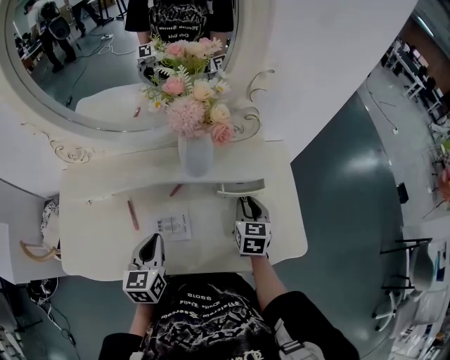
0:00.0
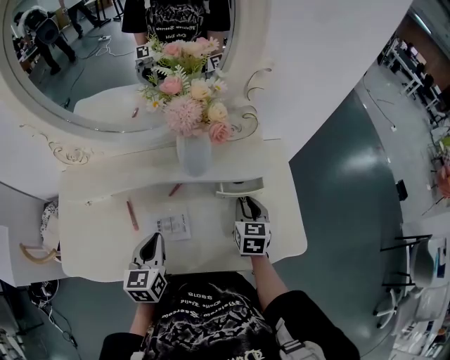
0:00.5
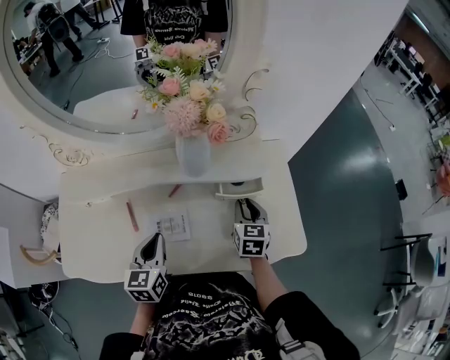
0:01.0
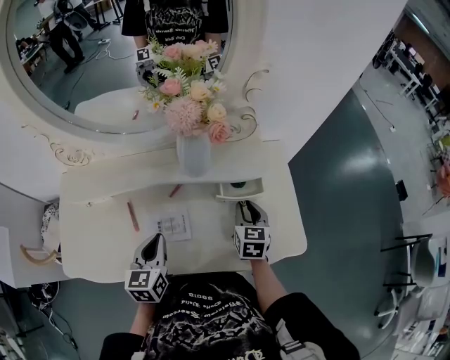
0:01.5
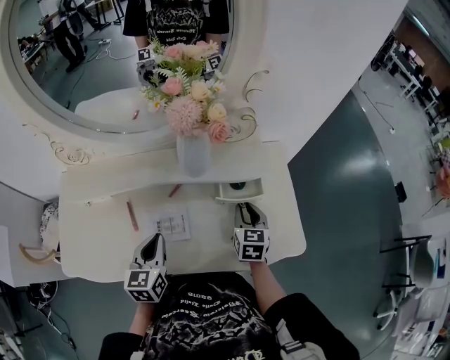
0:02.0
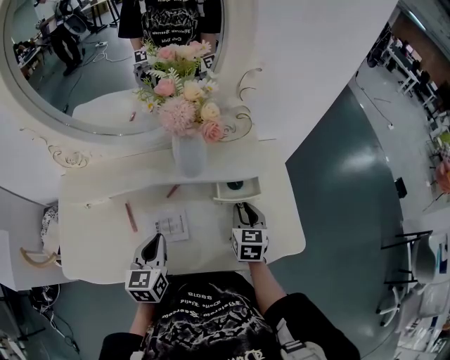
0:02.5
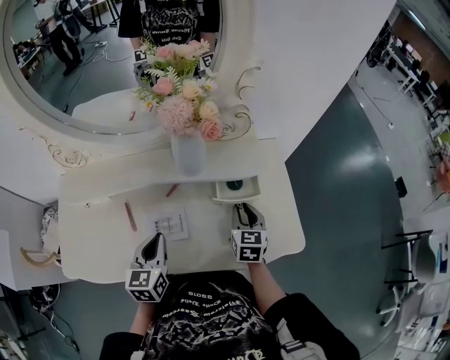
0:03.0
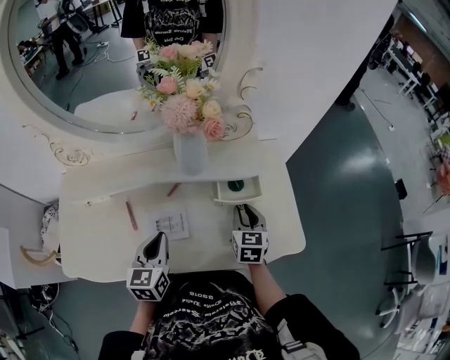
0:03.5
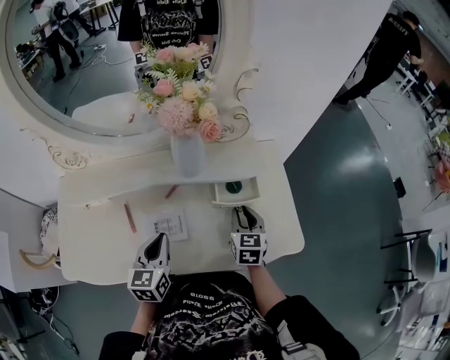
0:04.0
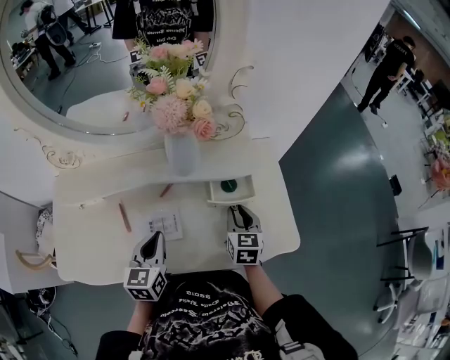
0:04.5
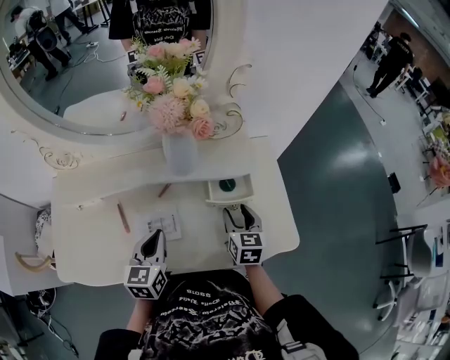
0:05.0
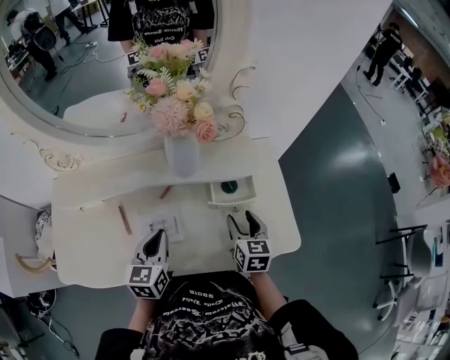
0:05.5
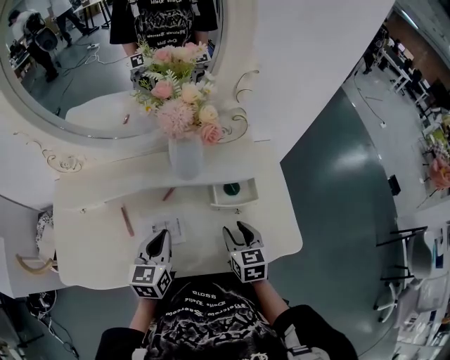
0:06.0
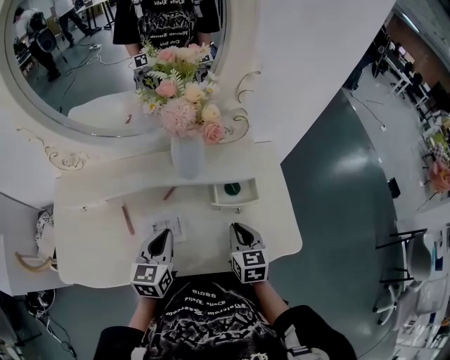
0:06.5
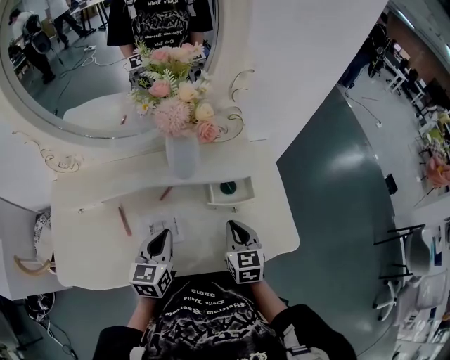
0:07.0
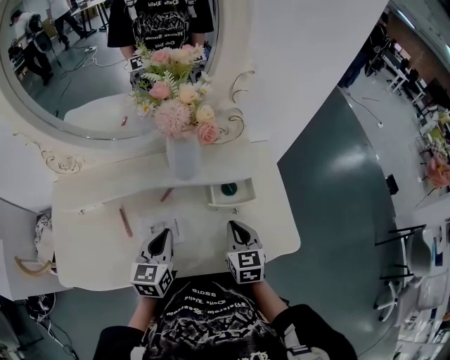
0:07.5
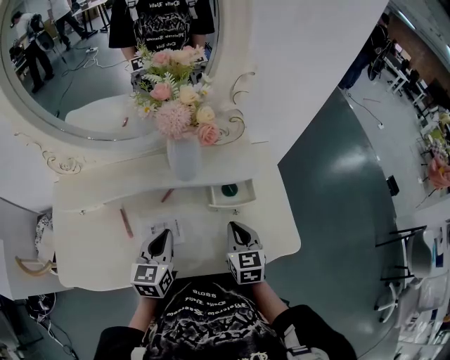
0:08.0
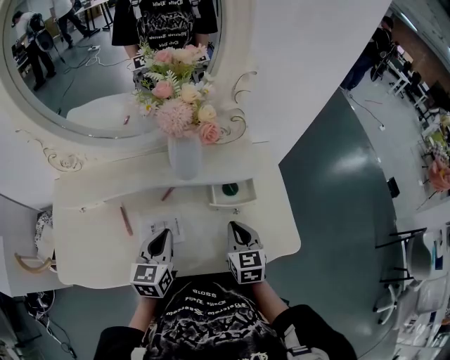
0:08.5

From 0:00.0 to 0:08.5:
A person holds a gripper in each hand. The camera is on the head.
From 0:00.0 to 0:04.0: The grippers make only small movements.
From 0:04.0 to 0:06.5: The right gripper moves backward, some 5 cm, and opens, then closes once more.
From 0:06.5 to 0:08.5: The grippers make only small movements.

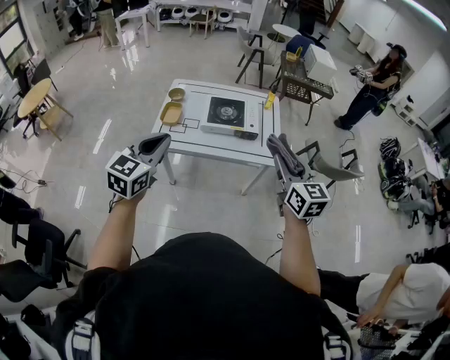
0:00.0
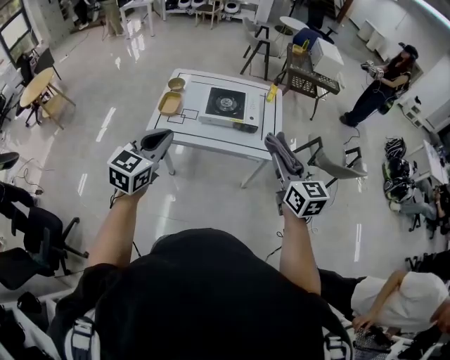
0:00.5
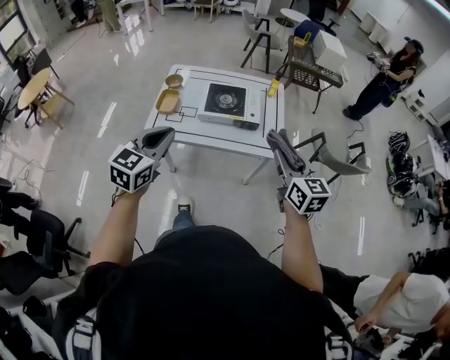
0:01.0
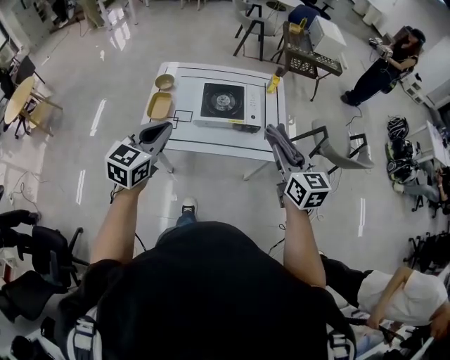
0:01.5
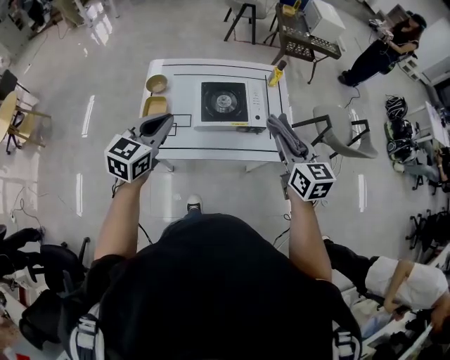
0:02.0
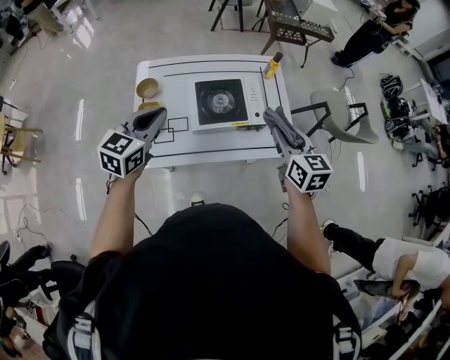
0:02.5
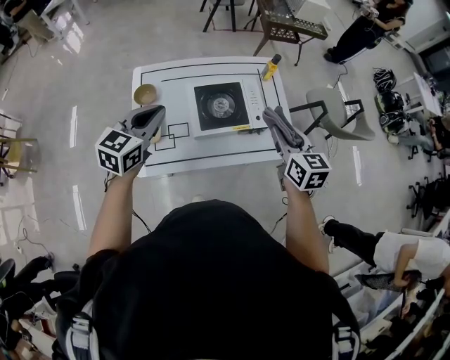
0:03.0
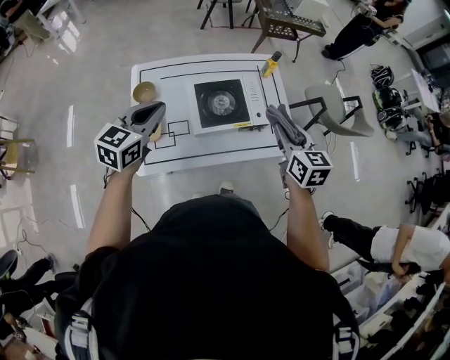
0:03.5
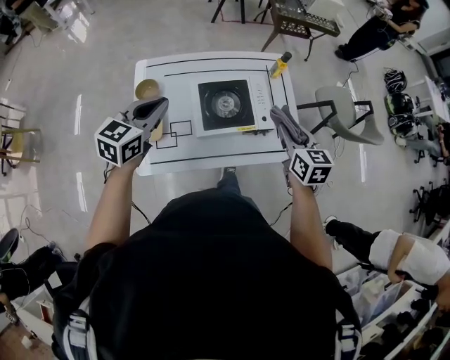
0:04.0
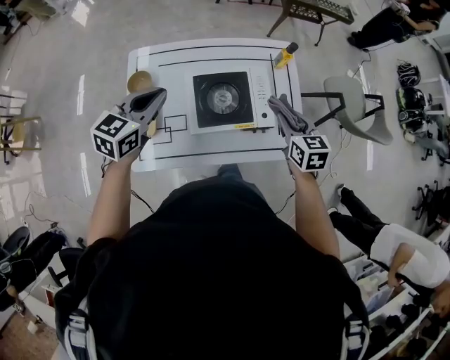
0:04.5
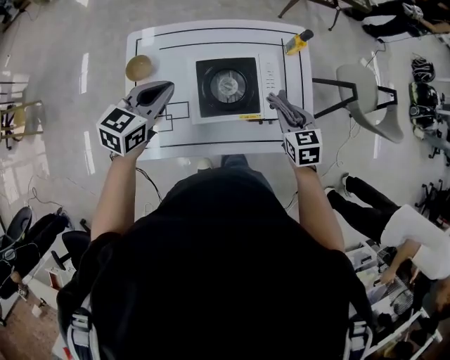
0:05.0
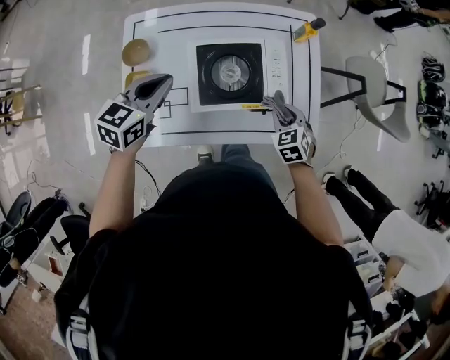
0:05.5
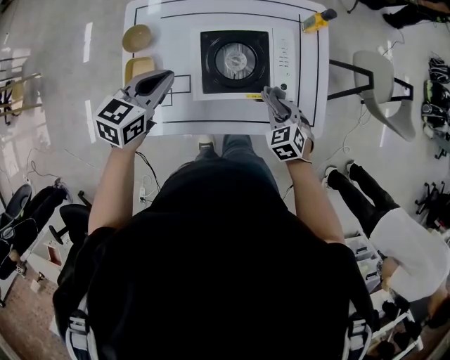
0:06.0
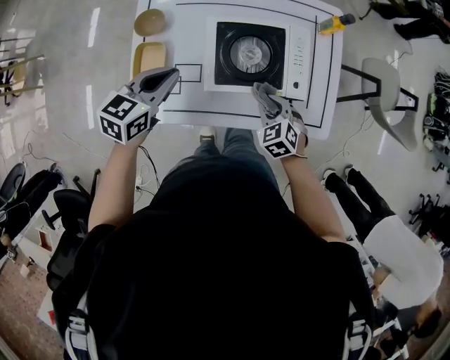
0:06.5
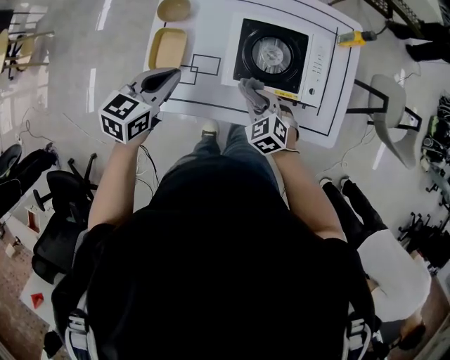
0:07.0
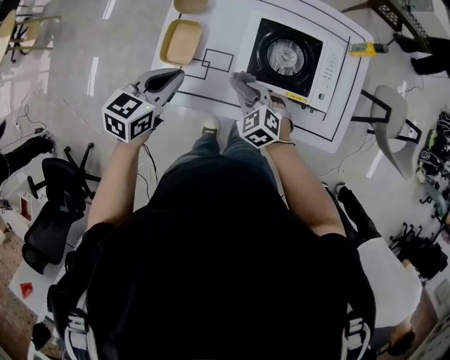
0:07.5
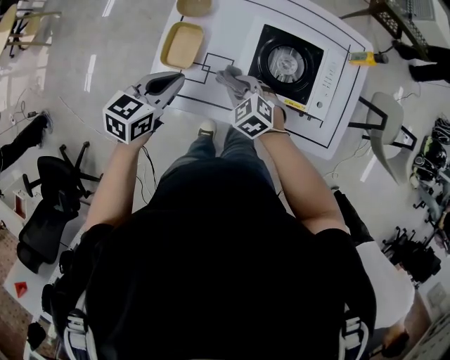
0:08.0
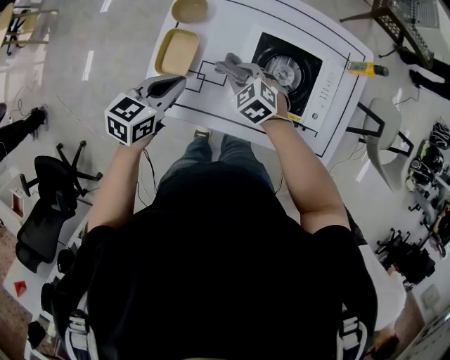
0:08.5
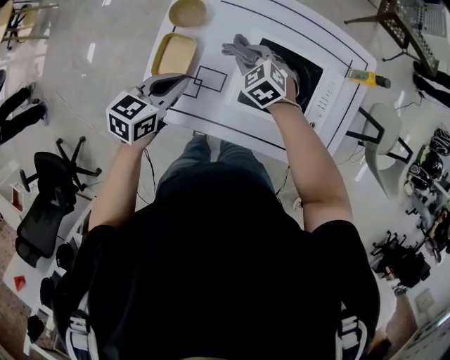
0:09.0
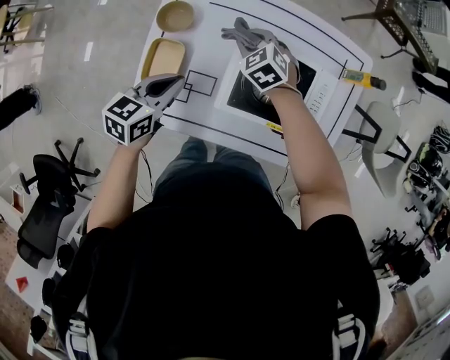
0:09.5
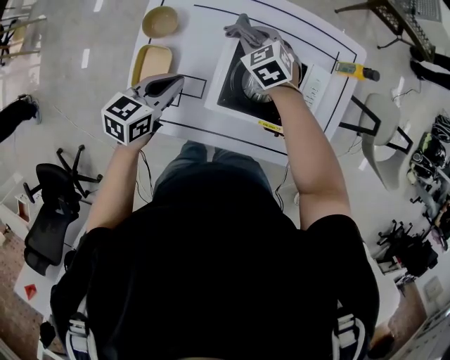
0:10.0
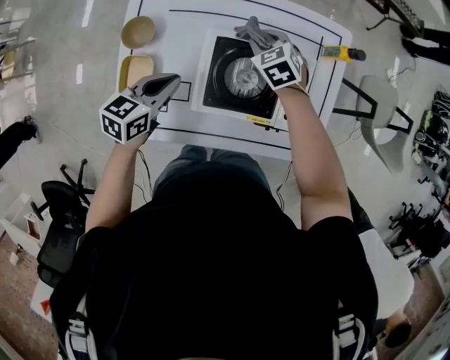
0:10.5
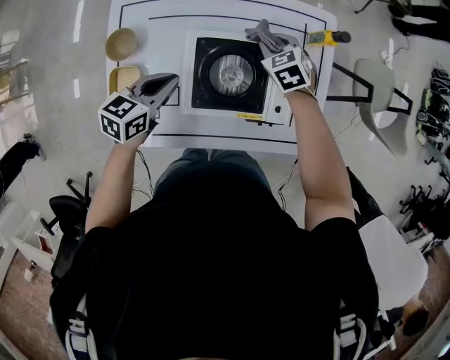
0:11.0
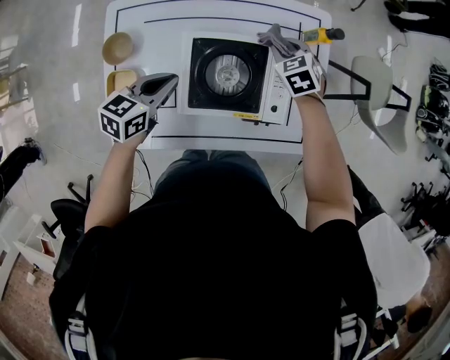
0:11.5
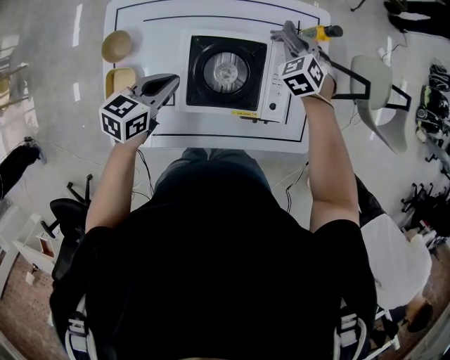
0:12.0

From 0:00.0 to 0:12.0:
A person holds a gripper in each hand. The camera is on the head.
From 0:00.0 to 0:02.0: The grippers both shift forward by about 30 cm.
From 0:02.0 to 0:04.0: The left gripper travels forward and to the left by approximately 20 cm. Meanwhile the right gripper shifts roughly 15 cm forward and downward.
From 0:04.0 to 0:06.0: The left gripper travels downward and forward by about 20 cm, while the right gripper moves downward, about 25 cm, and turns by some 50 degrees.
From 0:06.0 to 0:08.0: The left gripper shifts by some 15 cm. The right gripper changes place by roughly 30 cm, and rotates some 30 degrees.
From 0:08.0 to 0:10.0: The right gripper moves forward, about 25 cm, while the left gripper goes some 15 cm forward and to the right.
From 0:10.0 to 0:12.0: The right gripper ends up about 30 cm from where it was, and swivels approximately 30 degrees; the left gripper ends up about 10 cm from where it was.

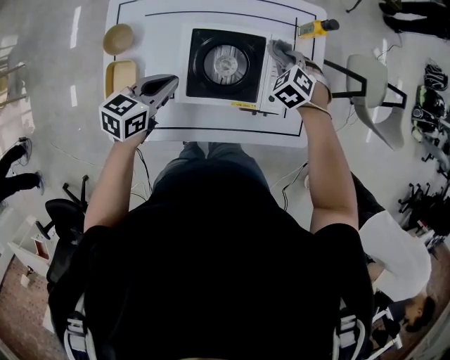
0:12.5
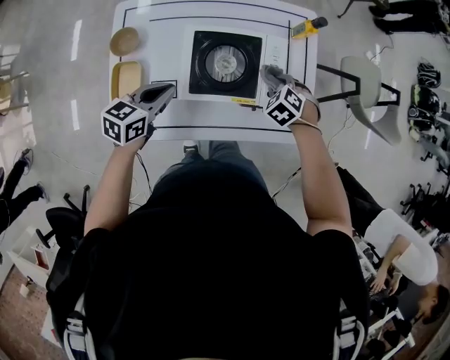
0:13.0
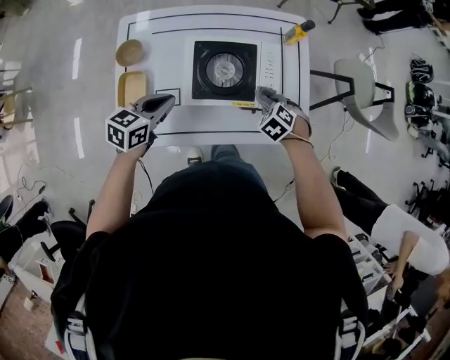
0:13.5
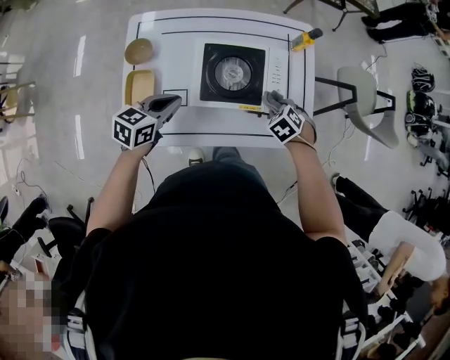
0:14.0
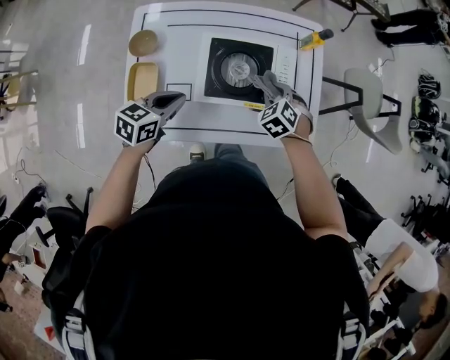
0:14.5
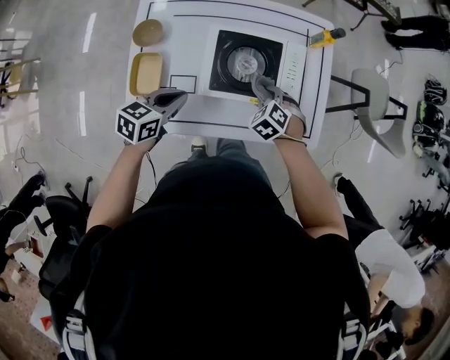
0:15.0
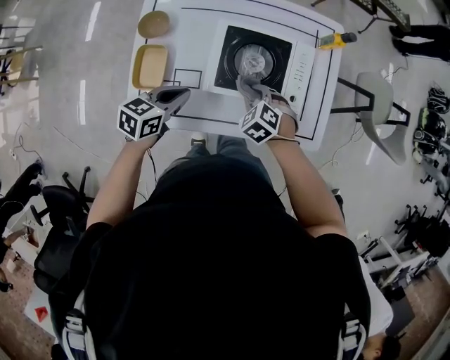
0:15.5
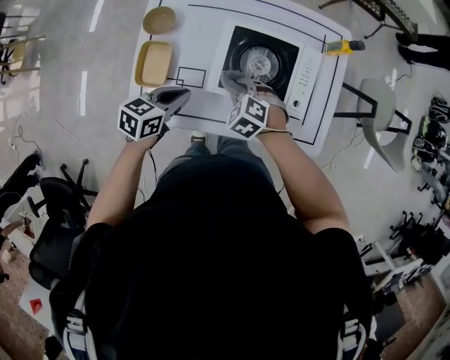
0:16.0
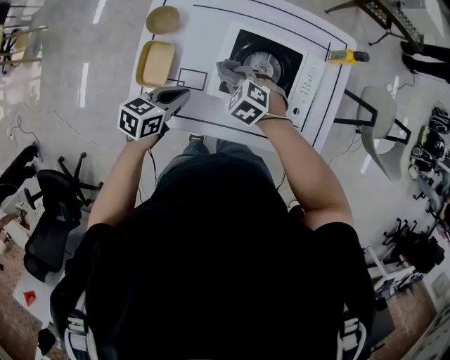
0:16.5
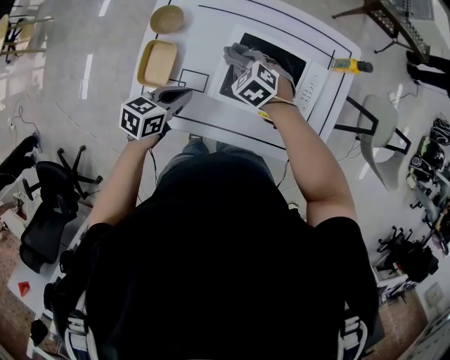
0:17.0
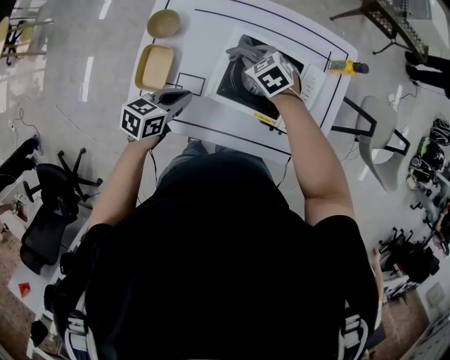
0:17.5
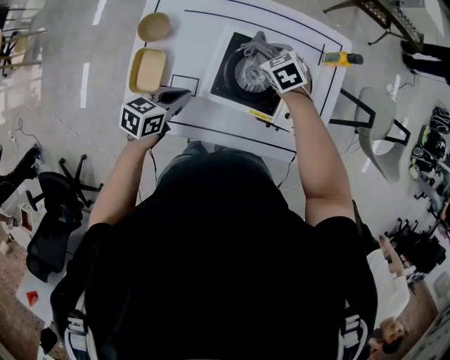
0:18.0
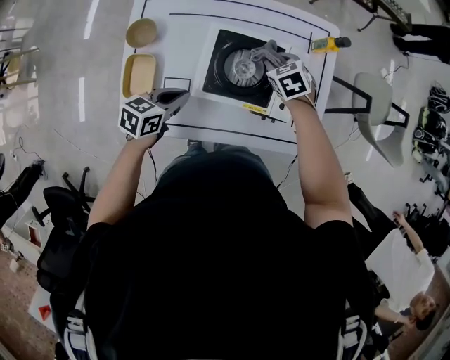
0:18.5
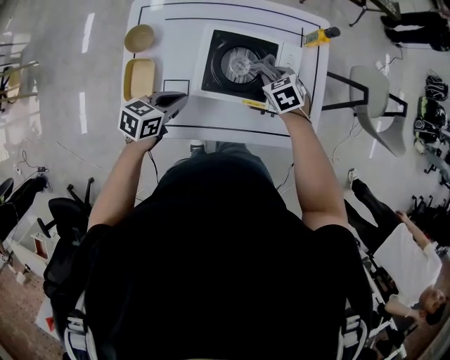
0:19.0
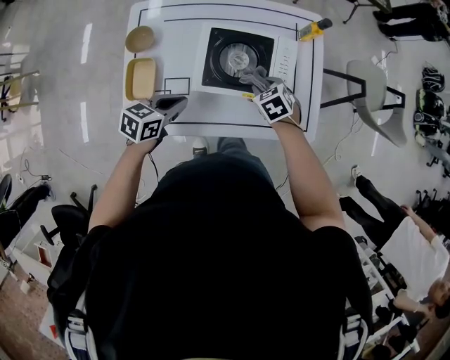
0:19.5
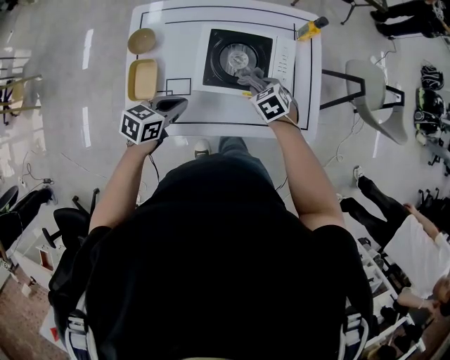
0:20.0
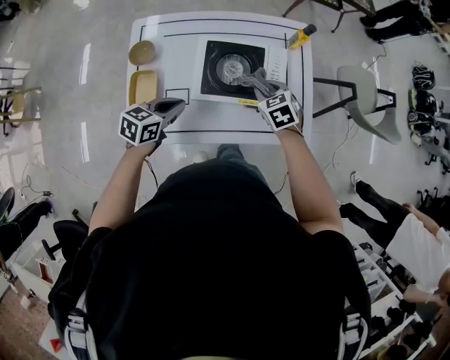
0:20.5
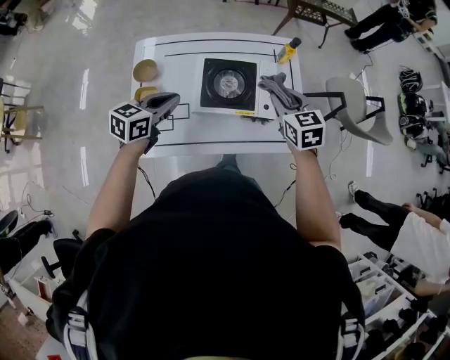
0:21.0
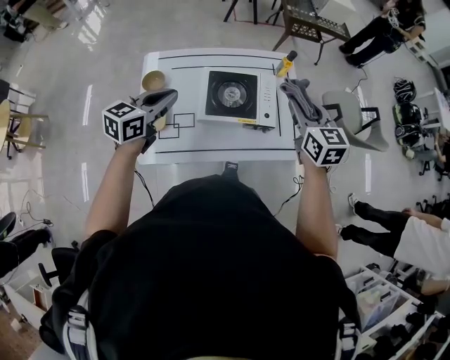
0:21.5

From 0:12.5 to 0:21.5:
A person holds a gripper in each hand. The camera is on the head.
From 0:12.5 to 0:14.5: The left gripper changes place by some 10 cm. Meanwhile the right gripper ends up roughly 15 cm from where it was.
From 0:14.5 to 0:17.0: The left gripper moves downward, some 5 cm. Meanwhile the right gripper changes place by about 20 cm, and swivels some 30 degrees.
From 0:17.0 to 0:19.5: The left gripper heads to the right, covering roughly 5 cm; the right gripper goes about 20 cm to the right and backward, and rotates about 30 degrees.
From 0:19.5 to 0:21.5: Both grippers move upward, roughly 30 cm. The right gripper tilts its fingers some 40 degrees upward, while the left gripper swivels approximately 20 degrees.
